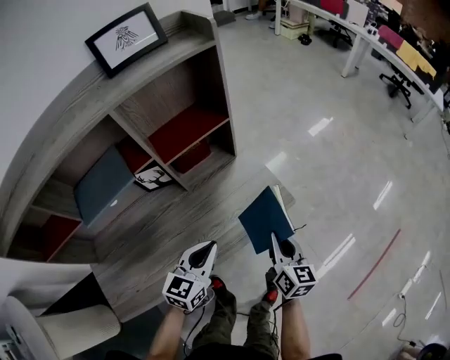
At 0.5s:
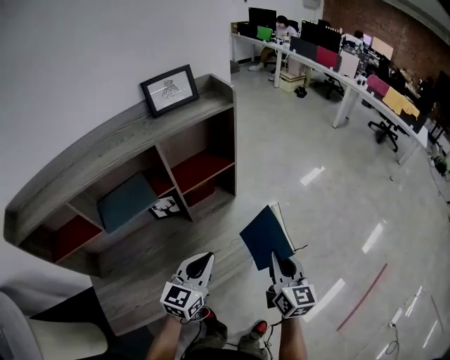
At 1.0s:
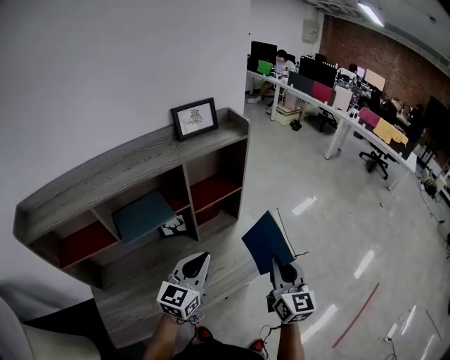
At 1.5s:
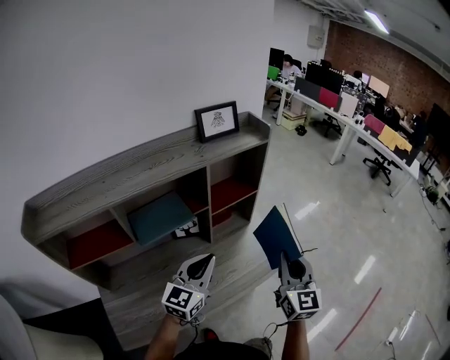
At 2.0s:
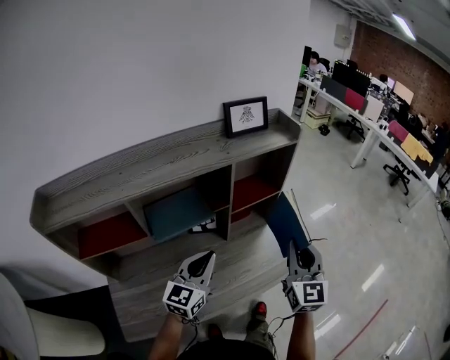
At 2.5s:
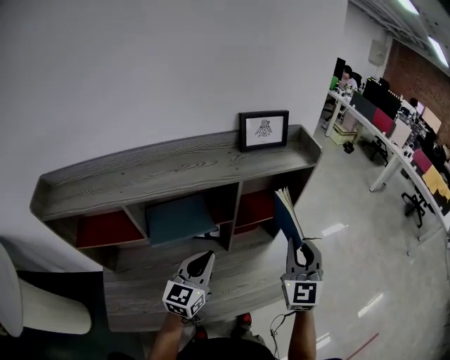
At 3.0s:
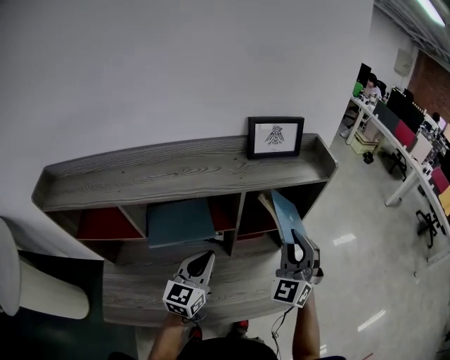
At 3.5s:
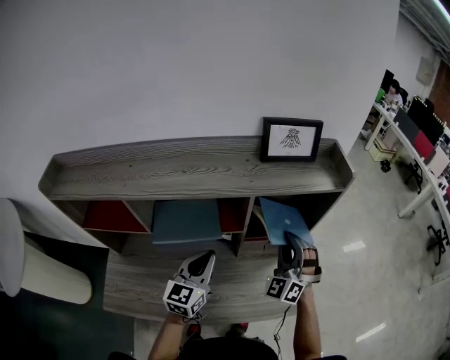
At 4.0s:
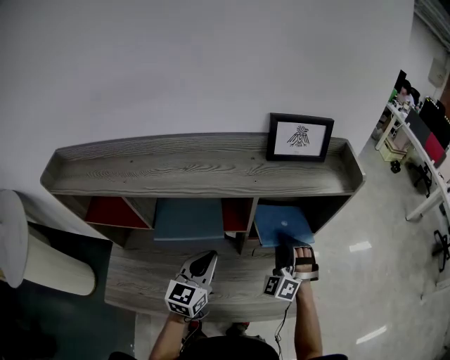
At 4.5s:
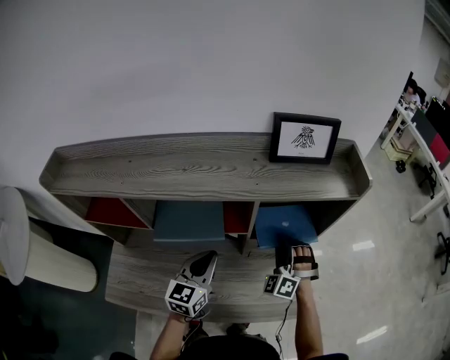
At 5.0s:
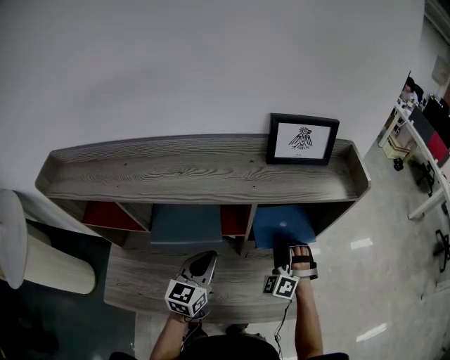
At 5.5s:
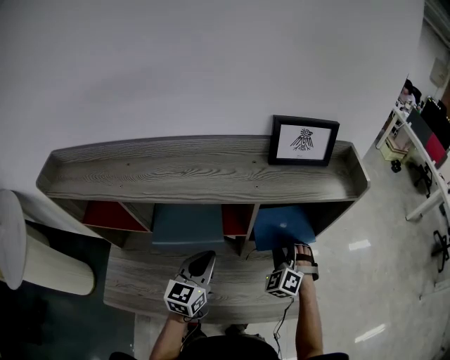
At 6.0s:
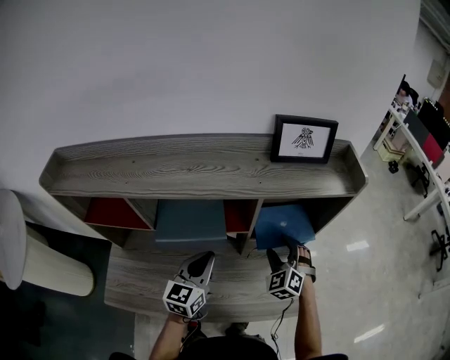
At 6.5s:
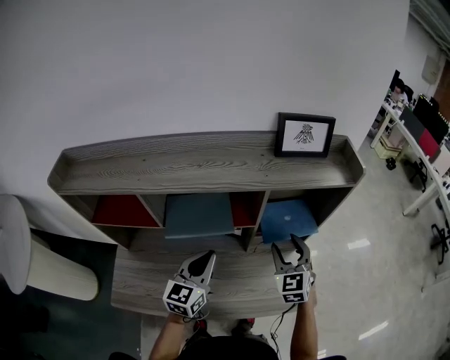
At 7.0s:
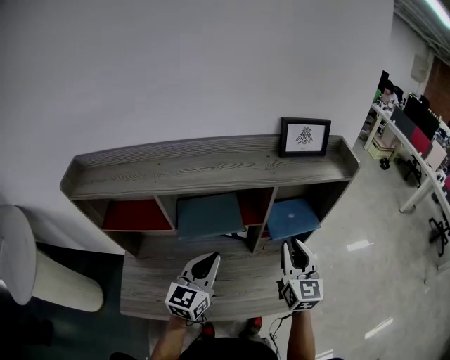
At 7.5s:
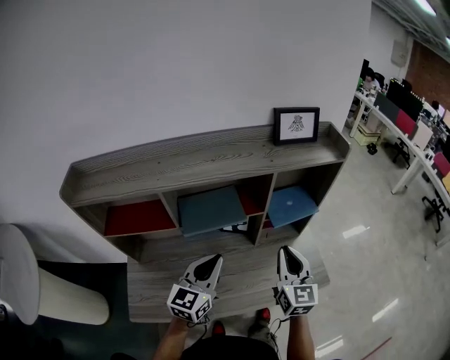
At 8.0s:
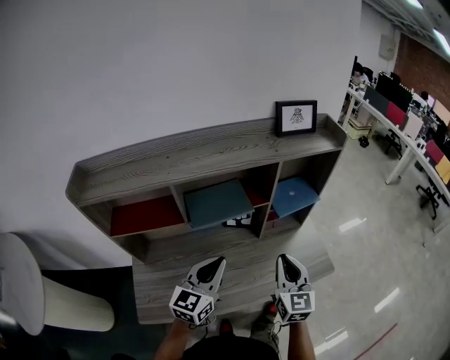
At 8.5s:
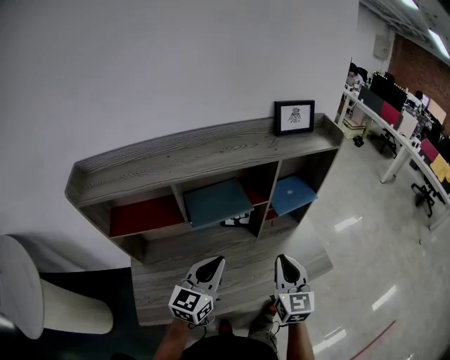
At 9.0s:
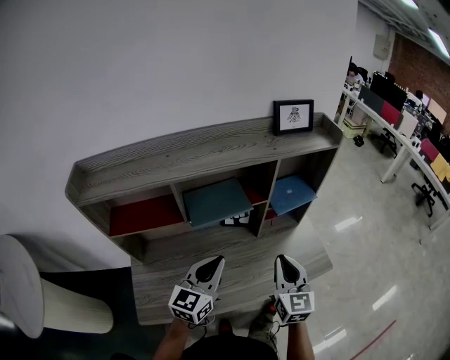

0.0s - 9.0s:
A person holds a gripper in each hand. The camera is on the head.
0.0s - 2.0s: The two grippers go about 25 cm upward and to the left. The left gripper changes its angle by roughly 20 degrees, while the right gripper rotates about 40 degrees.
2.0s - 4.5s: The left gripper shifts about 10 cm forward and downward, and changes its angle by some 30 degrees. The right gripper travels forward and downward by approximately 30 cm, and rolls counterclockwise, seen from behind, by approximately 60 degrees.
4.5s - 7.0s: The right gripper heads upward and backward, covering approximately 15 cm, twists approximately 70 degrees clockwise, seen from behind, and opens, then closes again. Meanwhile the left gripper travels upward and backward by approximately 10 cm.
7.0s - 9.0s: The left gripper heads backward, covering roughly 10 cm, while the right gripper travels backward by some 15 cm.

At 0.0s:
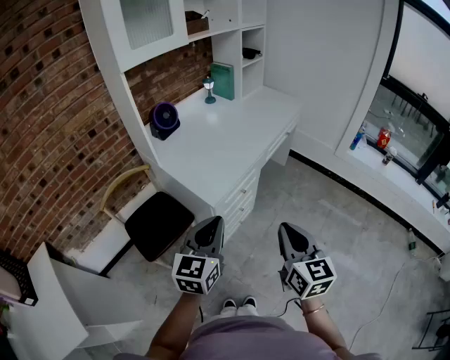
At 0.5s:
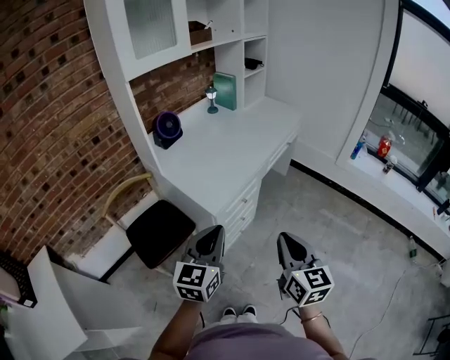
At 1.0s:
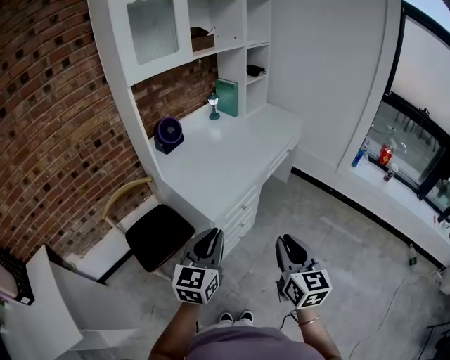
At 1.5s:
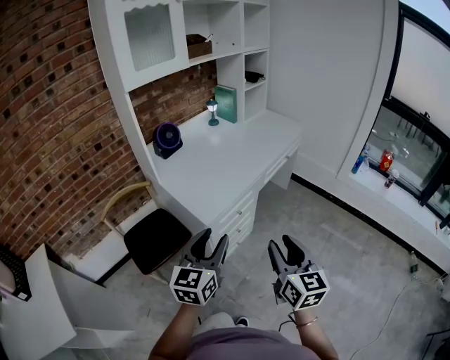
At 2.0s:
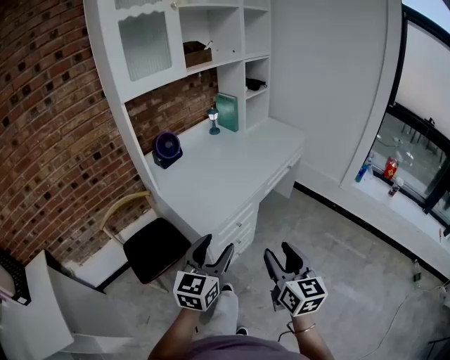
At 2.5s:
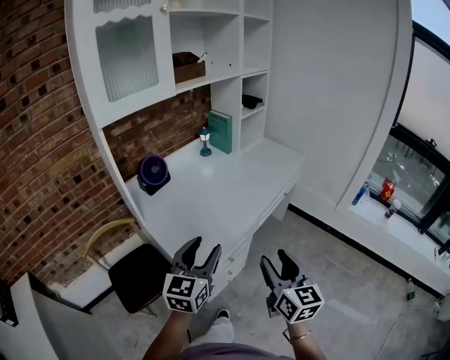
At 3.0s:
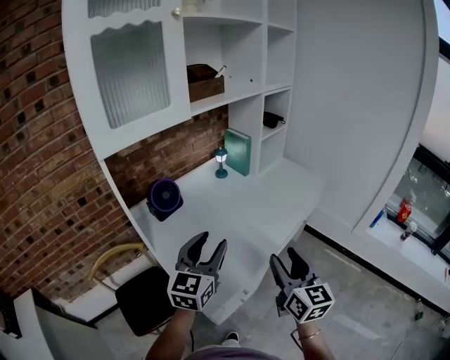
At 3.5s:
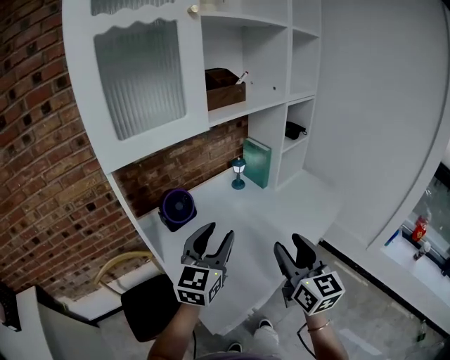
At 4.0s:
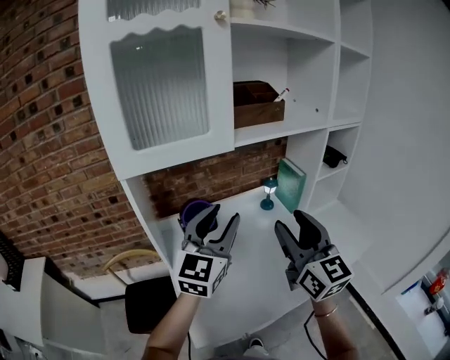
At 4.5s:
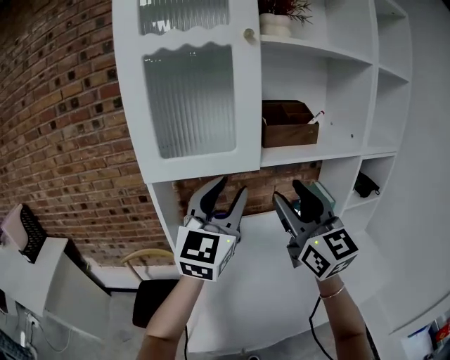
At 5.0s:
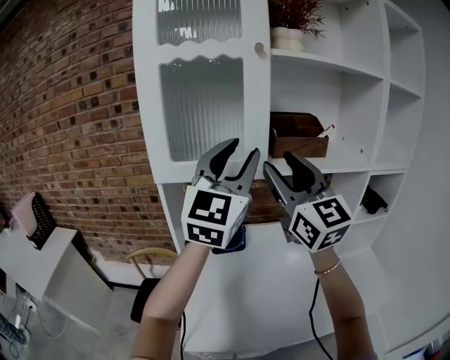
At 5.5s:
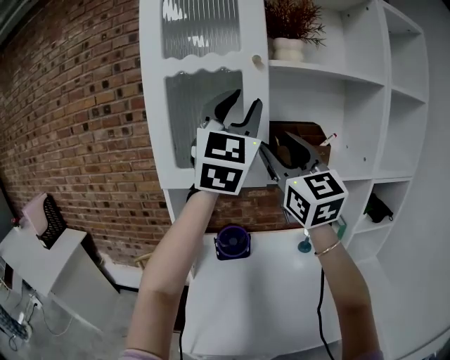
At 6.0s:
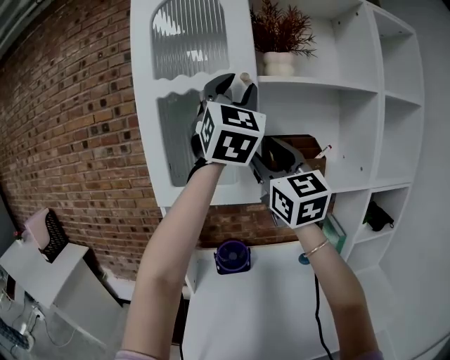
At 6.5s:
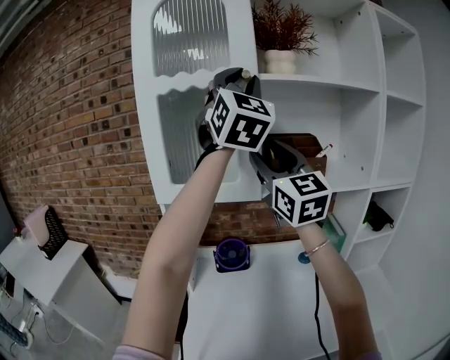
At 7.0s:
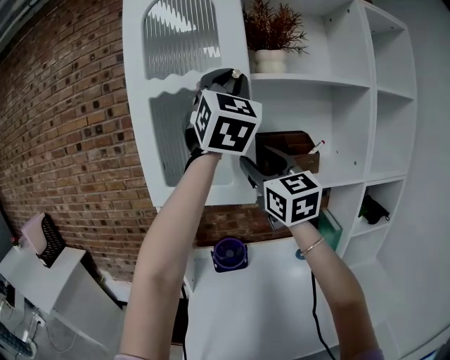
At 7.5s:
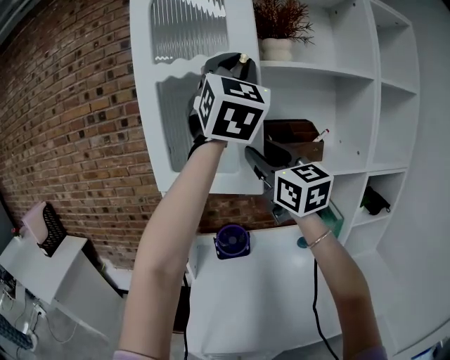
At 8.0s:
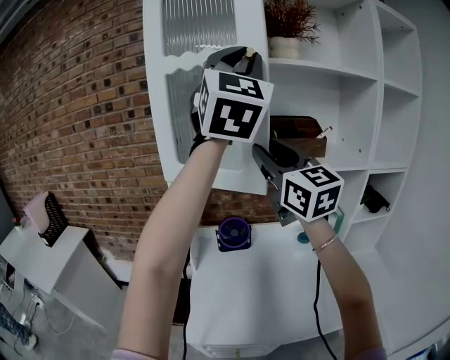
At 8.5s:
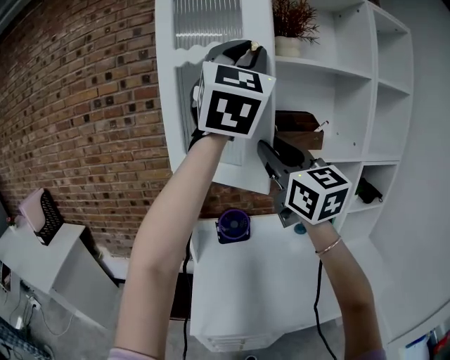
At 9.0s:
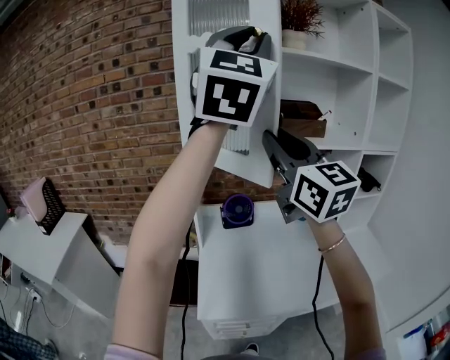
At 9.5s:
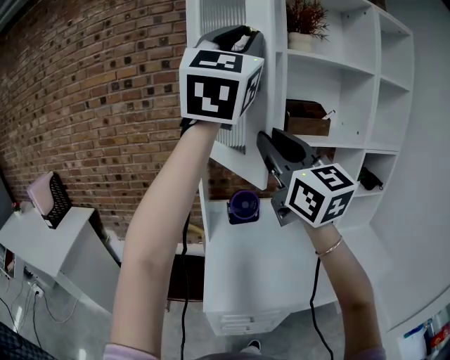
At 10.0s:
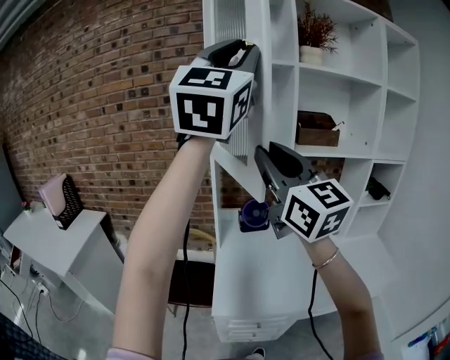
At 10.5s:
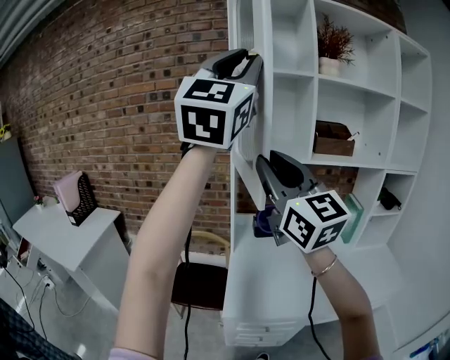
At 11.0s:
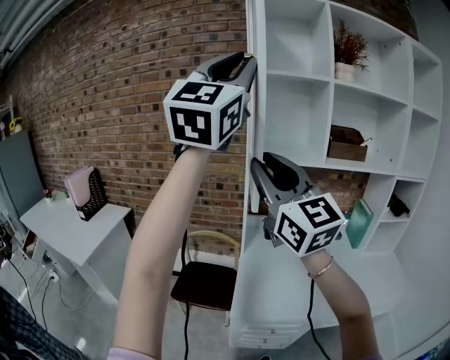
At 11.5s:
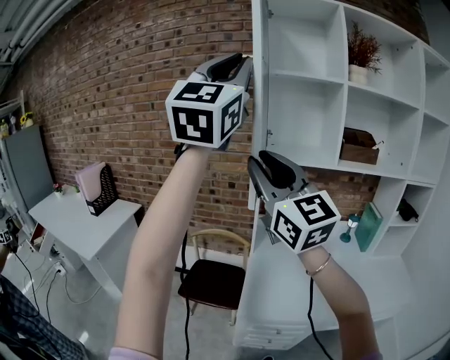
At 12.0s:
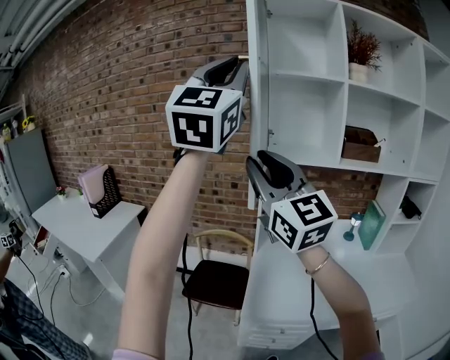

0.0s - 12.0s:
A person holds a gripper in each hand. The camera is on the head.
0.0s - 2.0s: The right gripper changes place by about 5 cm, and opens its fingers, while the left gripper heads to the right, covering some 5 cm, and opens.
2.0s - 4.0s: The pair of grippers is taken some 50 cm. The left gripper swivels some 30 degrees; the right gripper rotates some 40 degrees.
4.0s - 6.0s: The left gripper goes some 40 cm upward, and changes its angle by approximately 50 degrees. Meanwhile the right gripper heads upward, covering approximately 25 cm, and rotates some 30 degrees.
6.0s - 8.0s: The left gripper heads backward, covering some 5 cm. Meanwhile the right gripper moves some 5 cm.
8.0s - 10.0s: The two grippers go roughly 20 cm backward and to the left.
10.0s - 12.0s: Both grippers travel together to the left, roughly 15 cm.

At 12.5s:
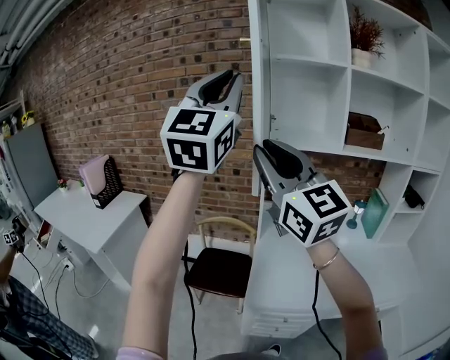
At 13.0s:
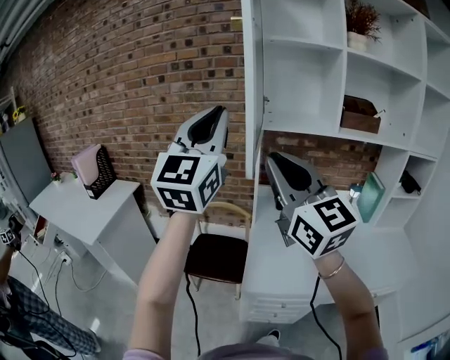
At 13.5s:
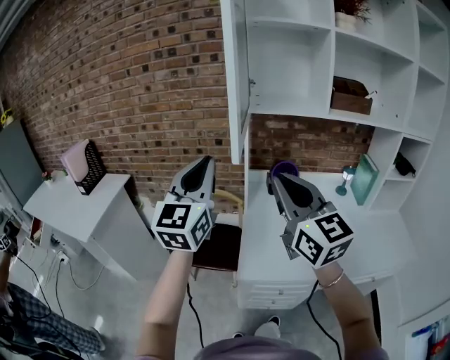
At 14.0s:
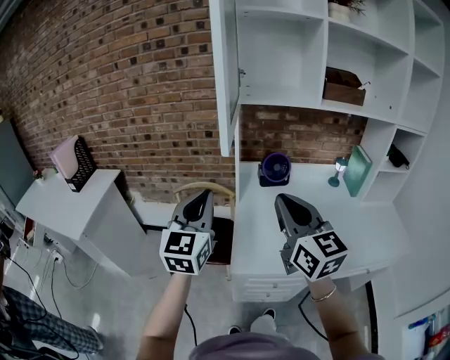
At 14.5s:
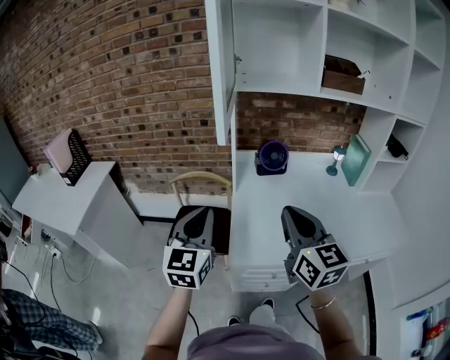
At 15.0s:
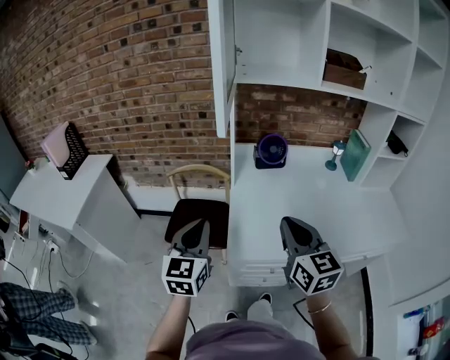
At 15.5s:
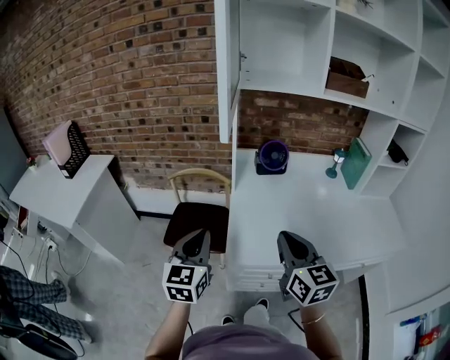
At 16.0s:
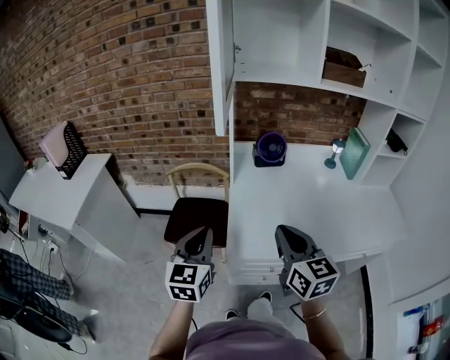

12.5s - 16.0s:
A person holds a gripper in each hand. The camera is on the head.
12.5s - 14.5s: The left gripper shifts approximately 40 cm downward, and tips its fingers downward by some 30 degrees. The right gripper shifts approximately 30 cm downward and to the right, and rotates approximately 40 degrees.
14.5s - 16.0s: The grippers both shift downward by roughly 5 cm.

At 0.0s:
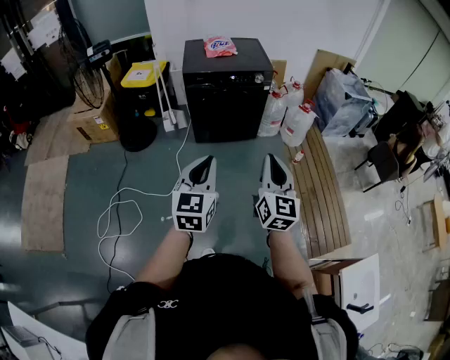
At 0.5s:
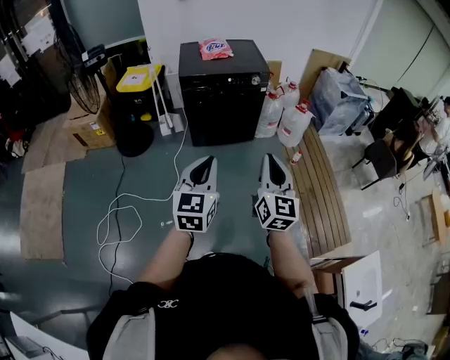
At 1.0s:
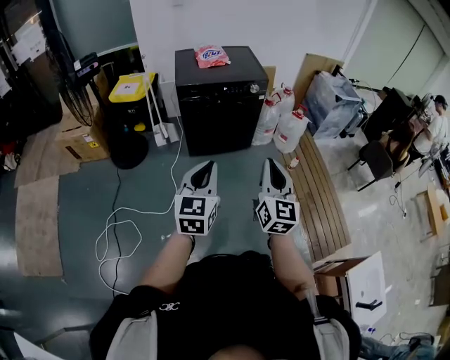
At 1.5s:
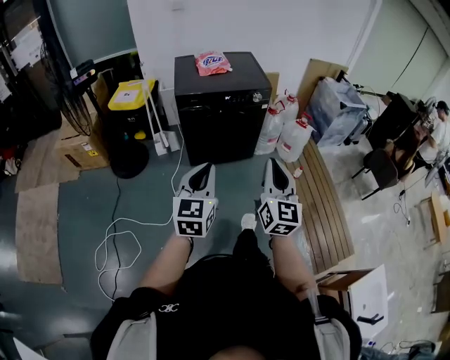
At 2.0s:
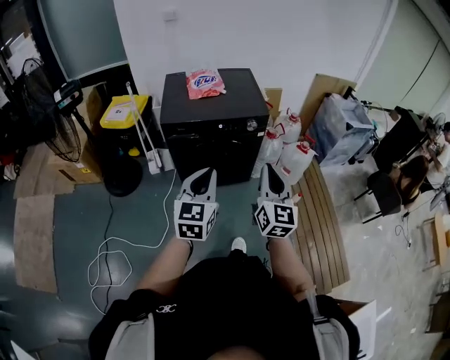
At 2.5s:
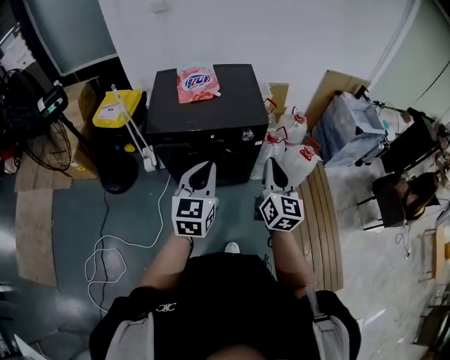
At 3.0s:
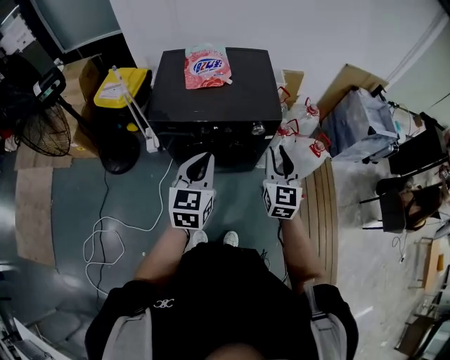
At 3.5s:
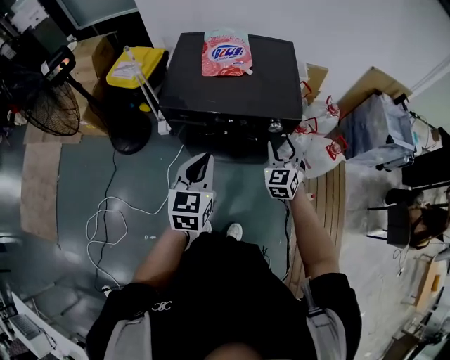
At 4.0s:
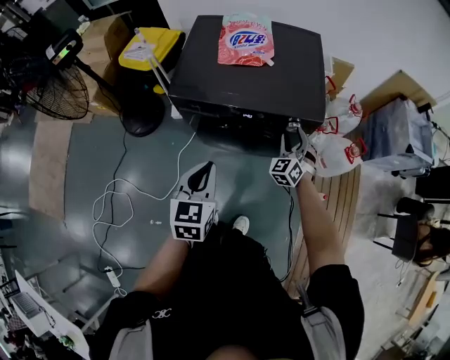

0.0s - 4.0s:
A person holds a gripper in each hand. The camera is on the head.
0.0s - 2.0s: Both grippers travel together forward, some 35 cm.
2.0s - 4.0s: The right gripper travels forward and downward by some 50 cm, twists roughly 50 degrees counterclockwise, seen from behind, and opens, while the left gripper travels forward and downward by roughly 25 cm, and swivels some 30 degrees.
